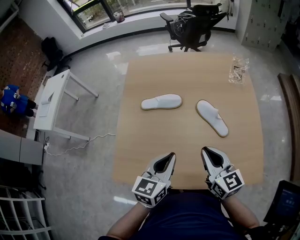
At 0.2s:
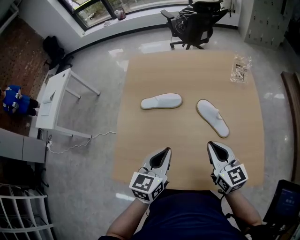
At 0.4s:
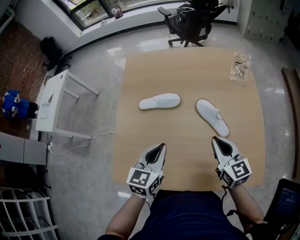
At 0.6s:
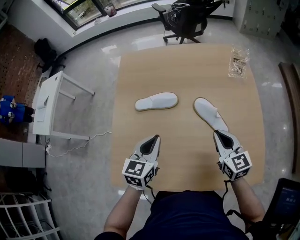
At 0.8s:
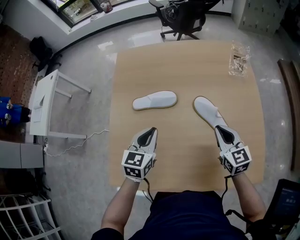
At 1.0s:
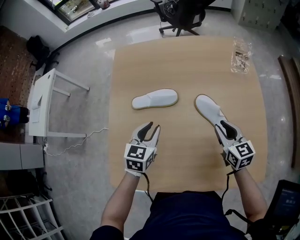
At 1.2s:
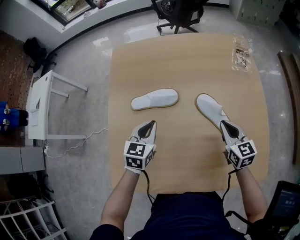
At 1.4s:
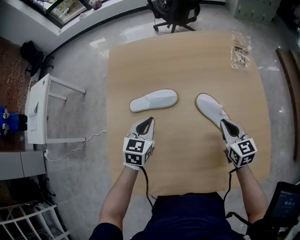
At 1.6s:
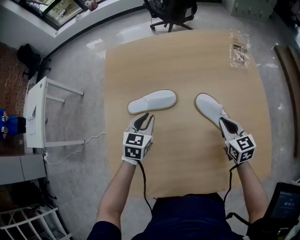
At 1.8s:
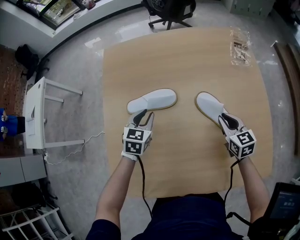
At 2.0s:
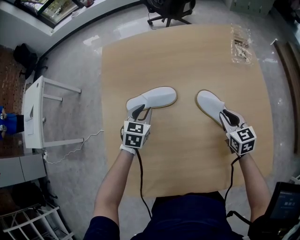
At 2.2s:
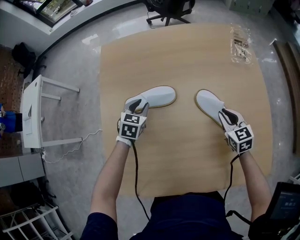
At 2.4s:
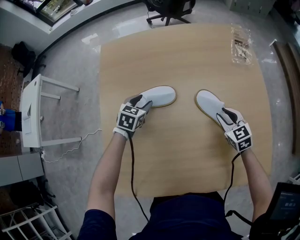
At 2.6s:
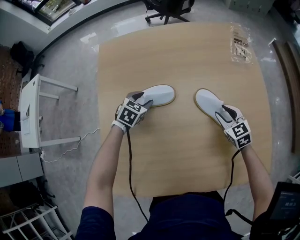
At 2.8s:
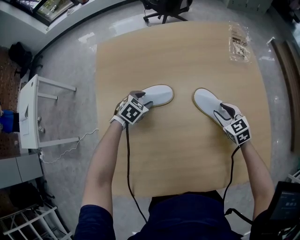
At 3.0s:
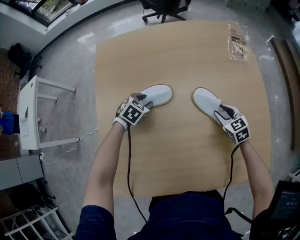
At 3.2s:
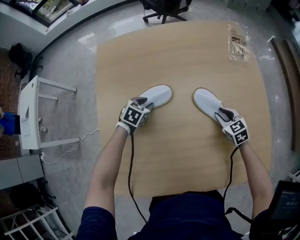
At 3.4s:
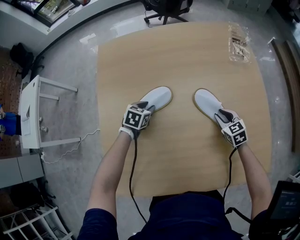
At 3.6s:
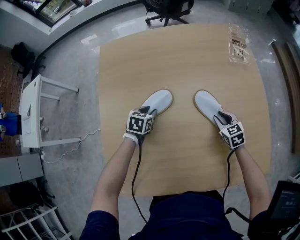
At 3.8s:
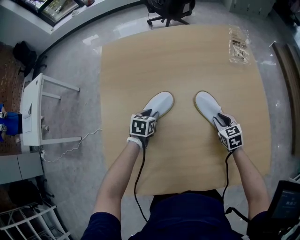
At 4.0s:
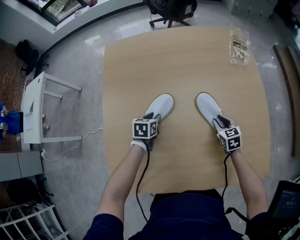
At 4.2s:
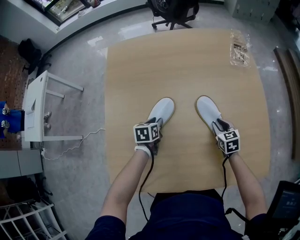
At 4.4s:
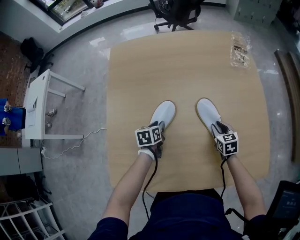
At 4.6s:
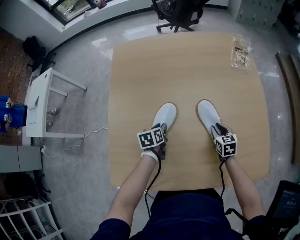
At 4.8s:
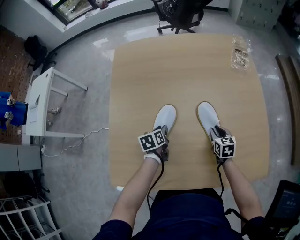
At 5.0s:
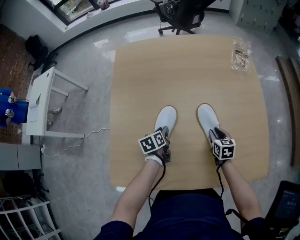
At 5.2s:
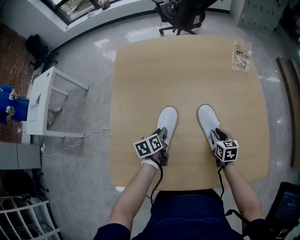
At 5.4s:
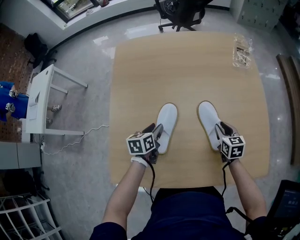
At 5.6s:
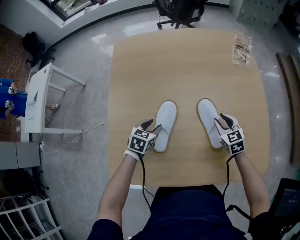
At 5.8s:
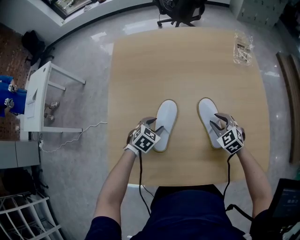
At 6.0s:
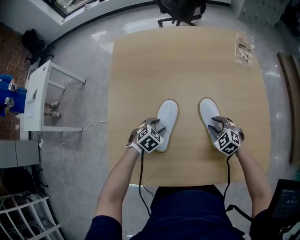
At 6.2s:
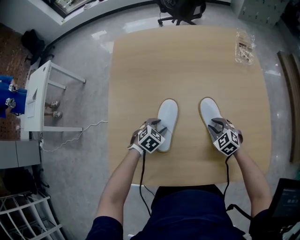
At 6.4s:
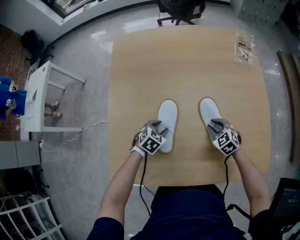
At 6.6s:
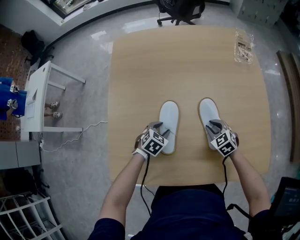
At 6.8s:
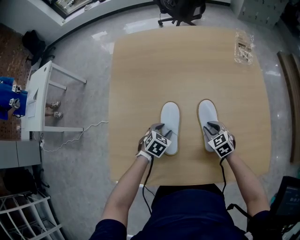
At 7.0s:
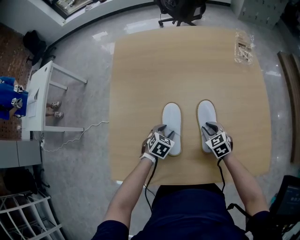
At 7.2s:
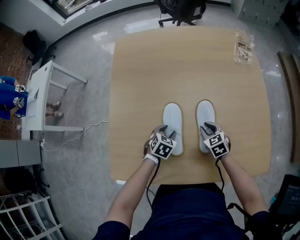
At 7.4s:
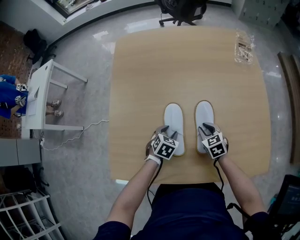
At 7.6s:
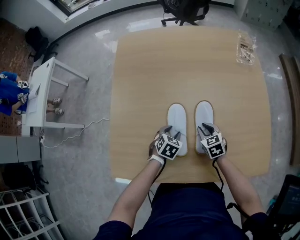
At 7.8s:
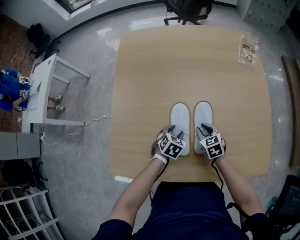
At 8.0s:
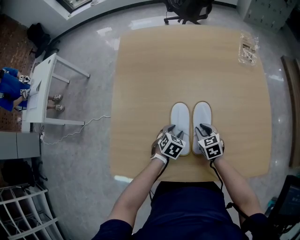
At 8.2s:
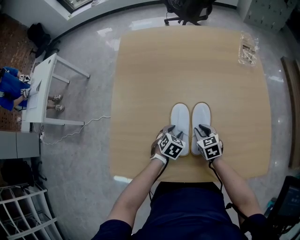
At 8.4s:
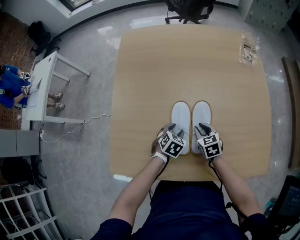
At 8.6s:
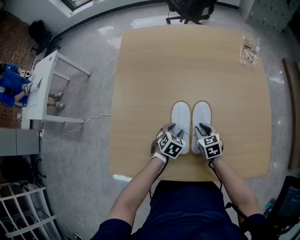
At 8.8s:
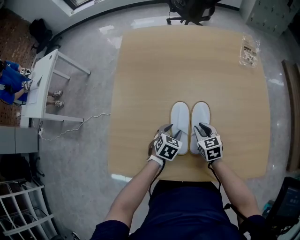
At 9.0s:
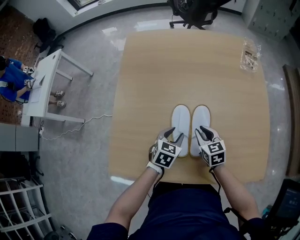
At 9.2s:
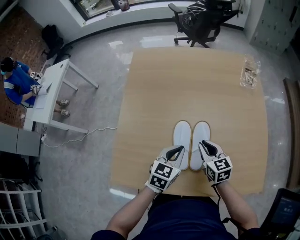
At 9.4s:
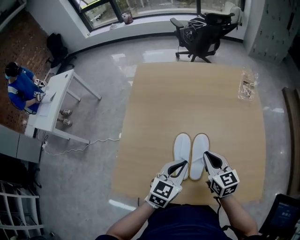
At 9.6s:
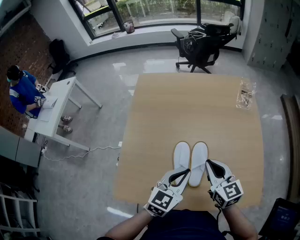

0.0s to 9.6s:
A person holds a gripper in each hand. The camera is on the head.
0.0s to 1.6s: The right gripper moves downward, forward and to the right, about 25 cm, changes its angle by about 20 degrees, and opens, then closes once more; the left gripper goes about 30 cm forward and downward, and rotates approximately 30 degrees.
1.6s to 3.2s: The left gripper moves downward and forward, about 15 cm, and swivels approximately 30 degrees. The right gripper moves downward, about 10 cm, turns by approximately 20 degrees, and opens its fingers.
3.2s to 4.8s: The right gripper goes some 10 cm backward, and swivels roughly 20 degrees. The left gripper shifts about 15 cm backward, and rolls counterclockwise, seen from behind, by some 60 degrees.
4.8s to 6.4s: The right gripper rolls counterclockwise, seen from behind, by about 40 degrees, while the left gripper rolls clockwise, seen from behind, by about 60 degrees.
6.4s to 8.0s: The right gripper heads to the left, covering about 5 cm, and swivels roughly 20 degrees; the left gripper heads to the right, covering about 5 cm.
8.0s to 9.6s: Both grippers travel together upward, roughly 30 cm. The right gripper tips its fingers upward by some 30 degrees, and closes its fingers. The left gripper tilts its fingers approximately 40 degrees upward, and closes.

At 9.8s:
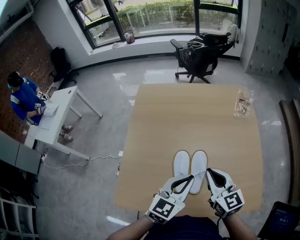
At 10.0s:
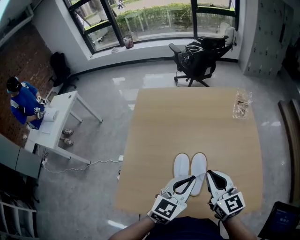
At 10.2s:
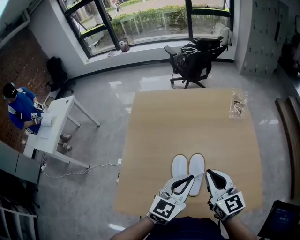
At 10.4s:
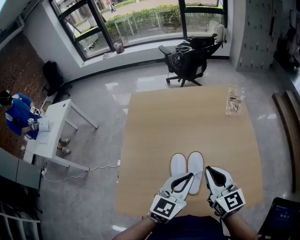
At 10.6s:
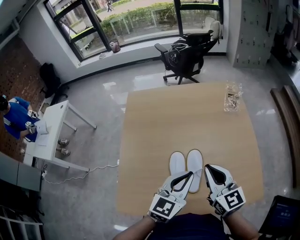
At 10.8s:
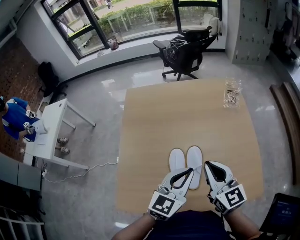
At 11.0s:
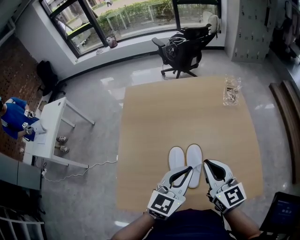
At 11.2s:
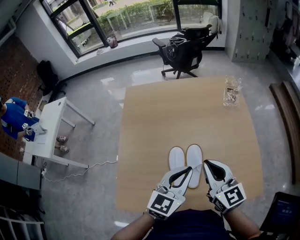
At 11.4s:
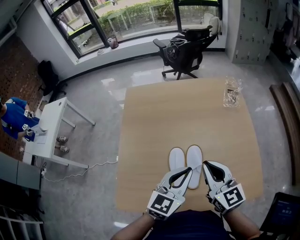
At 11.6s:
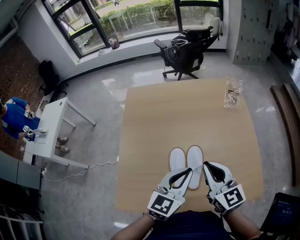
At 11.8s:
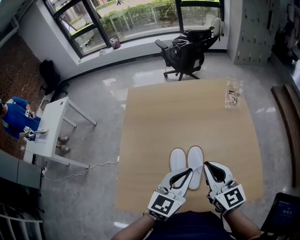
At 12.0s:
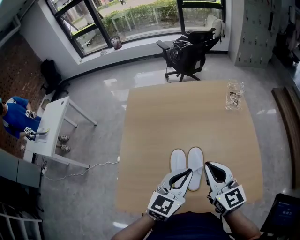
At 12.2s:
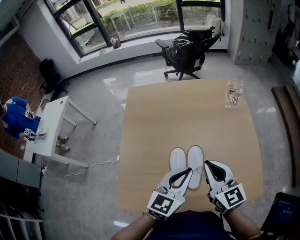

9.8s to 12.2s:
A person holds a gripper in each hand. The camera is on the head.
9.8s to 11.0s: The grippers stay close to where they were, moving slightly.
11.0s to 12.2s: The two grippers keep their place.

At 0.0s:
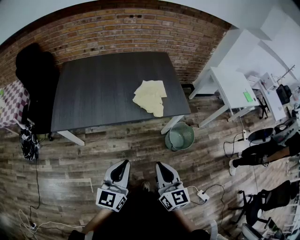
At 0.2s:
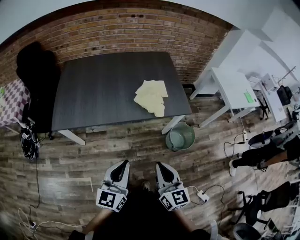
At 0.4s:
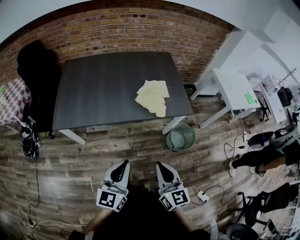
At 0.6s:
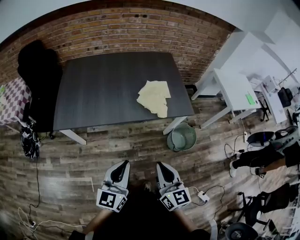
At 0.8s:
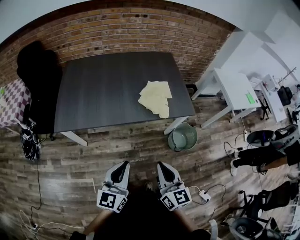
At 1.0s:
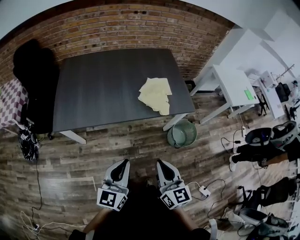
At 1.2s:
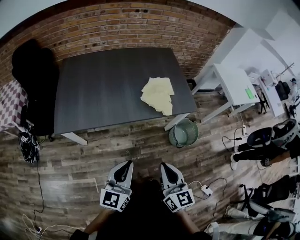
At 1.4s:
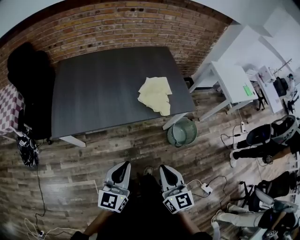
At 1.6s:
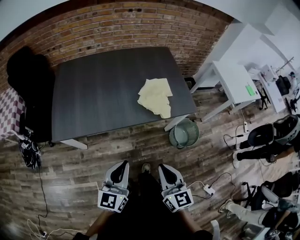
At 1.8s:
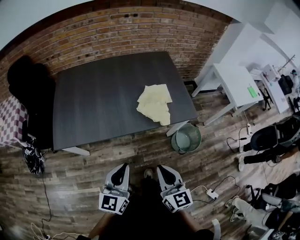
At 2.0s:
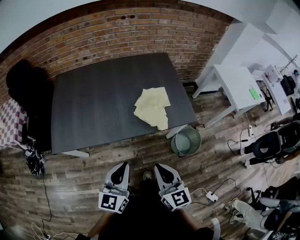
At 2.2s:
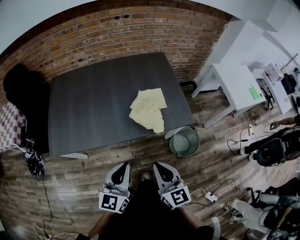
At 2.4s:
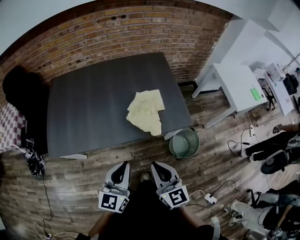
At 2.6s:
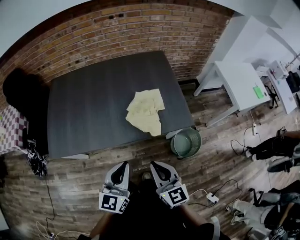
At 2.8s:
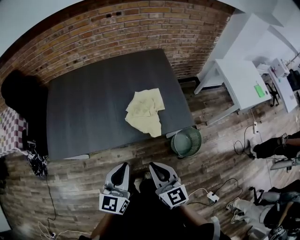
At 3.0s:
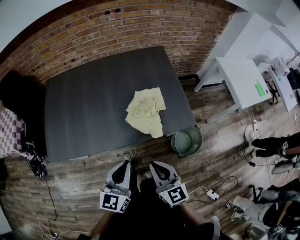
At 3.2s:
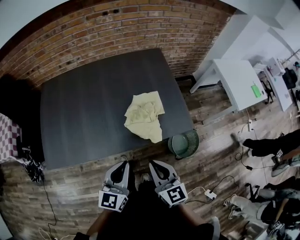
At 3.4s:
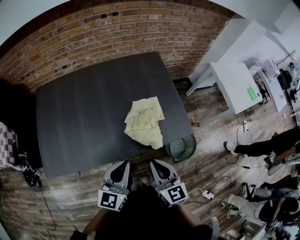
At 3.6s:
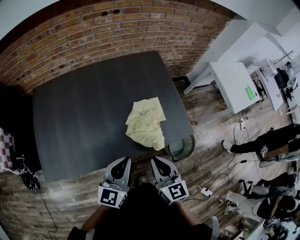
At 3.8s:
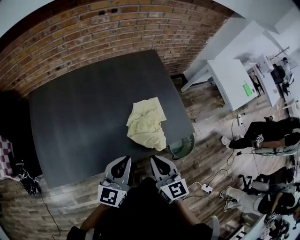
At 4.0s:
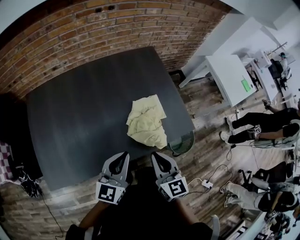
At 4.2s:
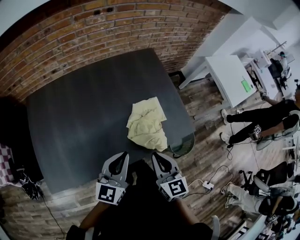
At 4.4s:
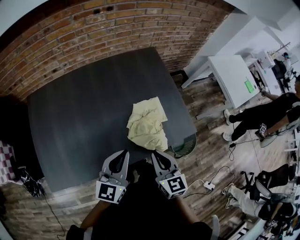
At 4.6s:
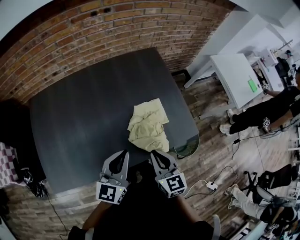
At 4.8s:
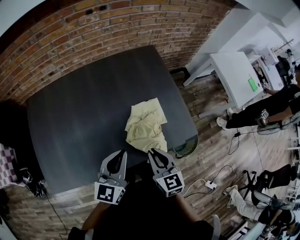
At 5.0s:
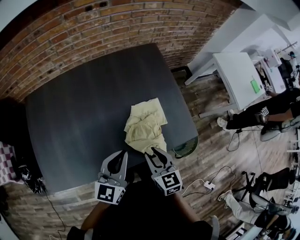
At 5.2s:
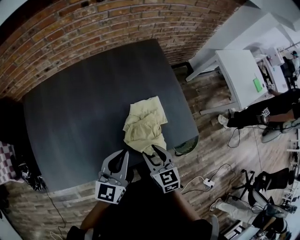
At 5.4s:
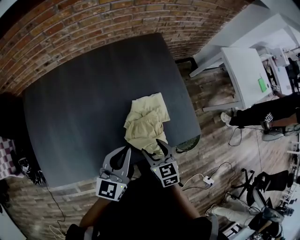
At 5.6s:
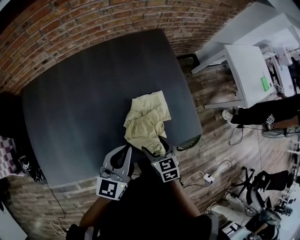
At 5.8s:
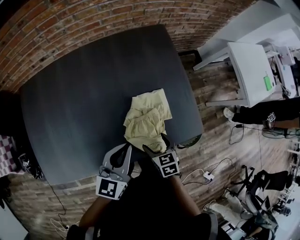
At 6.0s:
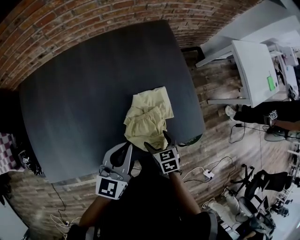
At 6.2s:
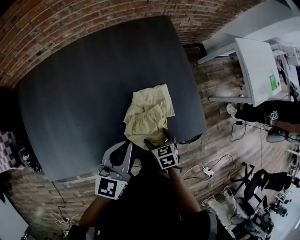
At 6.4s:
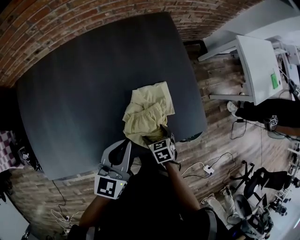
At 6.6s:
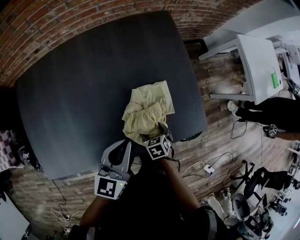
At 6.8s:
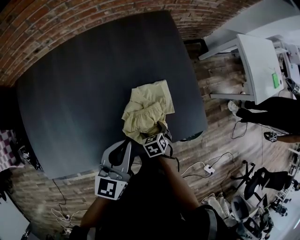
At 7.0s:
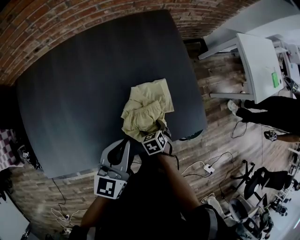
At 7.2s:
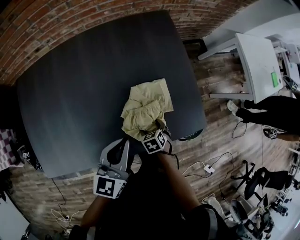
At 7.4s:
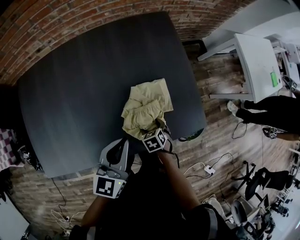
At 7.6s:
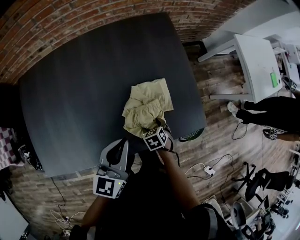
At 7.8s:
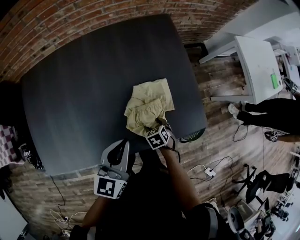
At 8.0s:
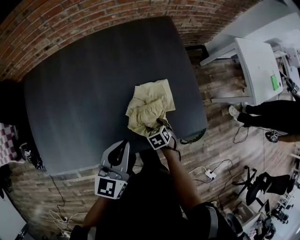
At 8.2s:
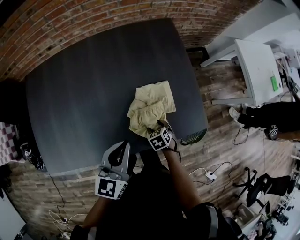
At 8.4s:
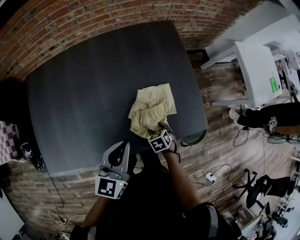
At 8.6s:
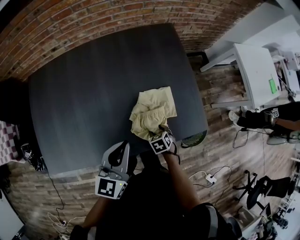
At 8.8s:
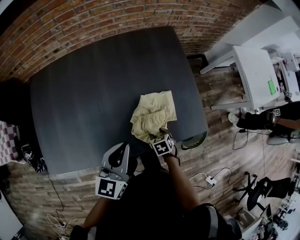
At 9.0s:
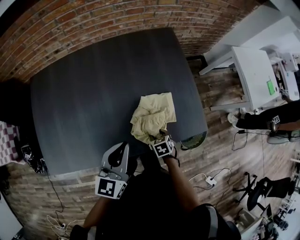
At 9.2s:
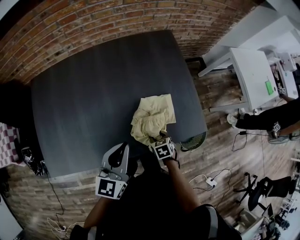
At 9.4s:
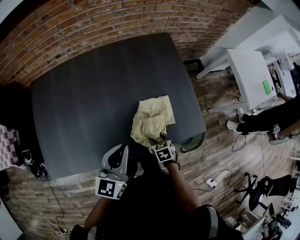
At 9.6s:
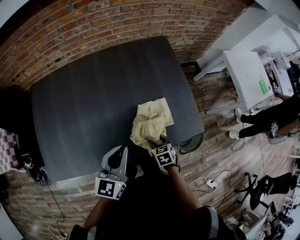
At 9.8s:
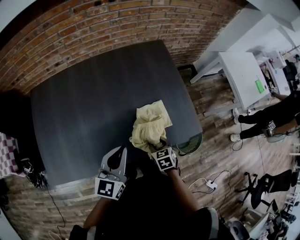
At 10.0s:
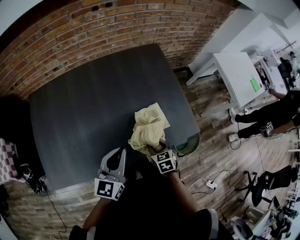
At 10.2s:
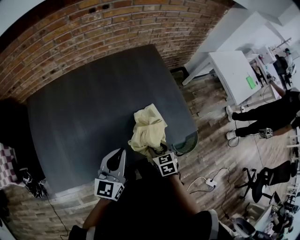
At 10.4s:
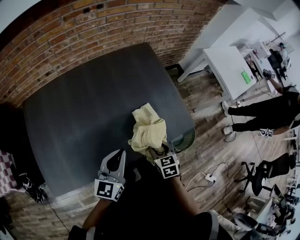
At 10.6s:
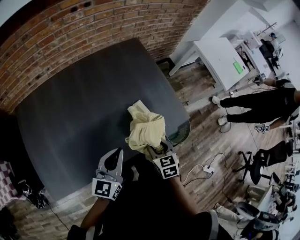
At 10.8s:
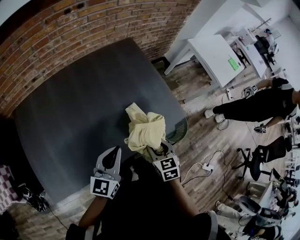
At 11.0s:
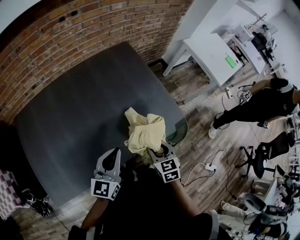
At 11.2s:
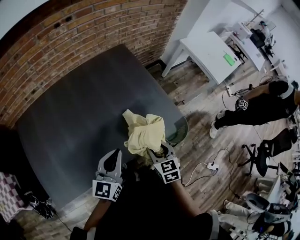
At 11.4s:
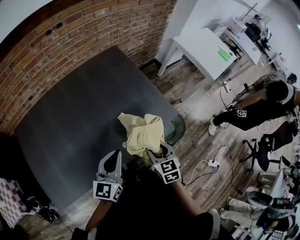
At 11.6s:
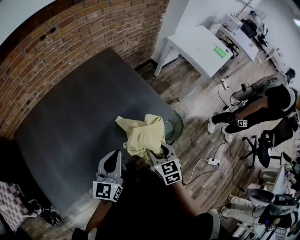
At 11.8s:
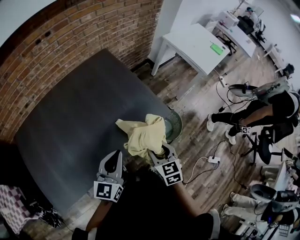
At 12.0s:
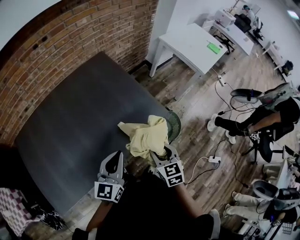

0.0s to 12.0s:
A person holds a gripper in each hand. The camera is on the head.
0.0s to 1.6s: The left gripper is displaced to the left and forward by about 10 cm. The right gripper travels to the left by about 5 cm.
1.6s to 3.0s: The grippers both shift forward and to the right by about 20 cm.
3.0s to 4.4s: The two grippers go some 20 cm forward and to the left.
4.4s to 6.0s: The left gripper heads forward, downward and to the right, covering about 15 cm; the right gripper goes some 25 cm downward and forward, angles its fingers downward, by approximately 30 degrees, and opens.
6.0s to 7.6s: The right gripper moves downward, approximately 10 cm.
7.6s to 9.0s: The right gripper closes its fingers; the left gripper shifts by approximately 5 cm.
9.0s to 10.4s: The right gripper shifts roughly 15 cm upward, and swivels some 20 degrees.
10.4s to 12.0s: The right gripper heads to the right and upward, covering approximately 15 cm. The left gripper moves to the right, some 15 cm.
